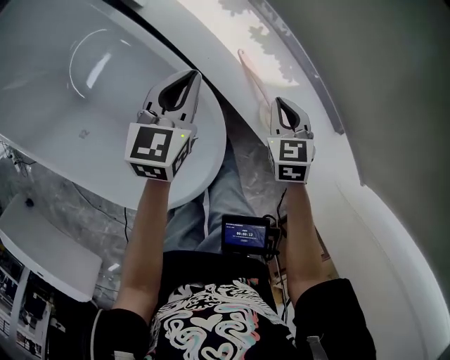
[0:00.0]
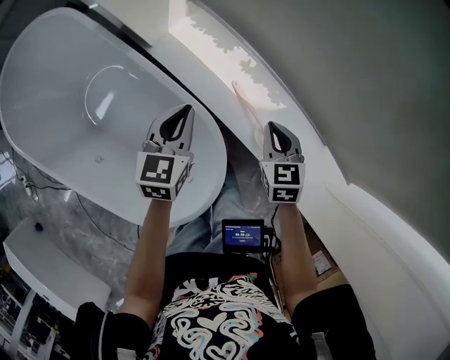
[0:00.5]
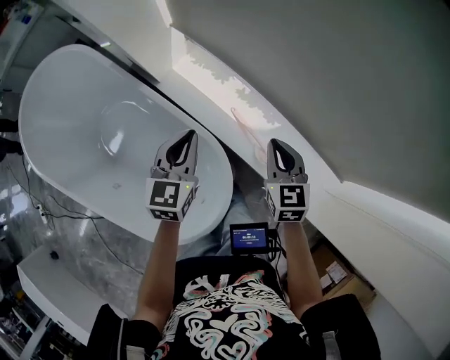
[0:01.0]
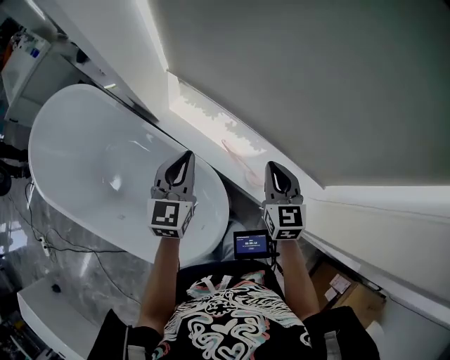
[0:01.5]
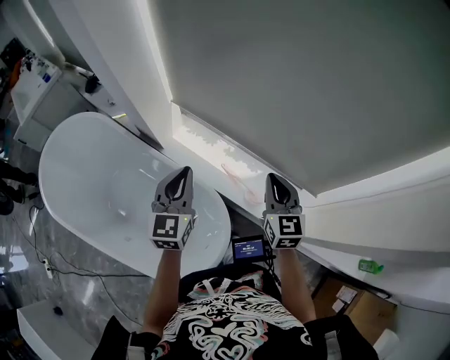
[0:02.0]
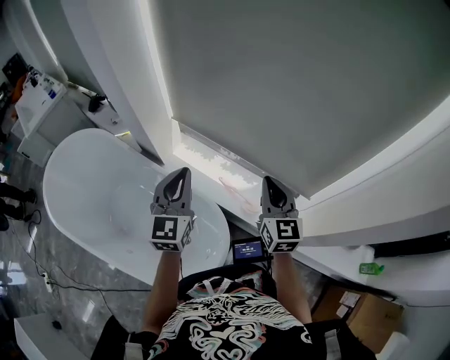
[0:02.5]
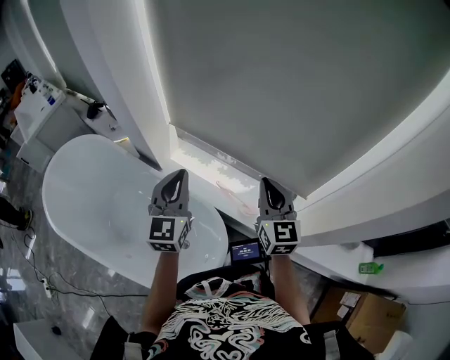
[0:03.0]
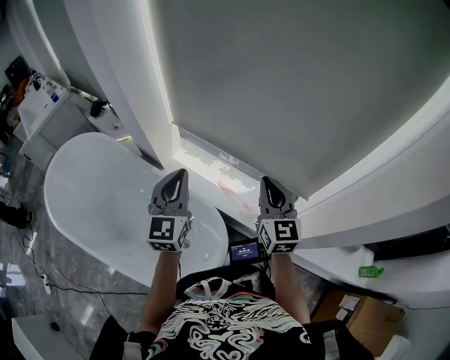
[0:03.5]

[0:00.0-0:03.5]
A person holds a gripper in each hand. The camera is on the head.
0:00.0 to 0:02.0: Both grippers travel together upward, about 35 cm. The left gripper swivels approximately 30 degrees, while the right gripper tilts its fingers about 40 degrees upward.
0:02.0 to 0:03.5: The grippers both shift upward by some 10 cm.

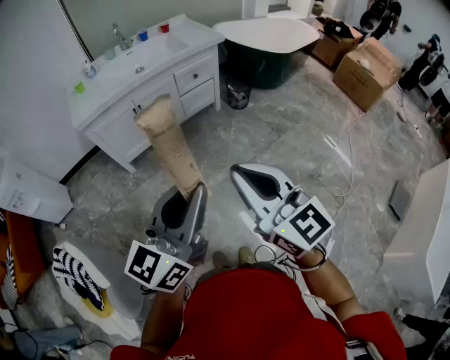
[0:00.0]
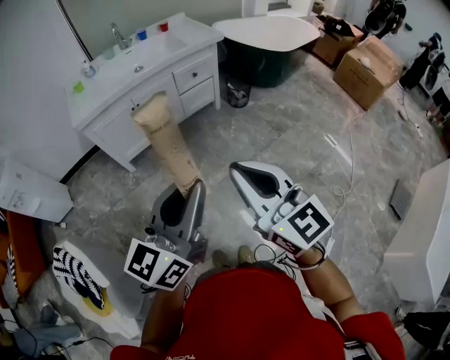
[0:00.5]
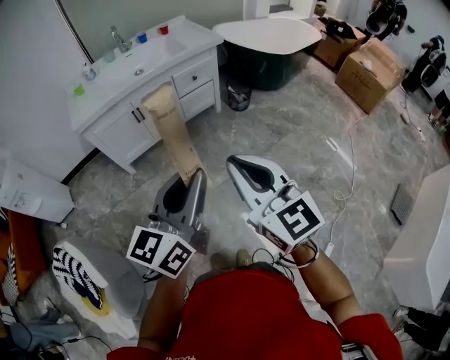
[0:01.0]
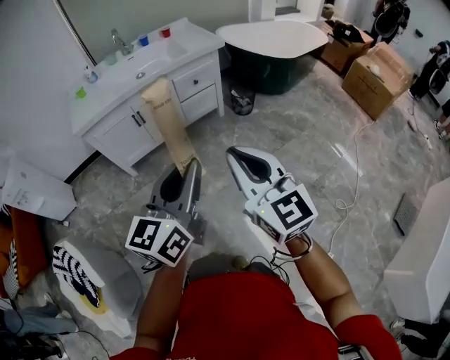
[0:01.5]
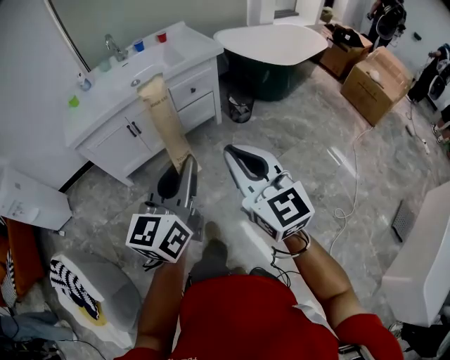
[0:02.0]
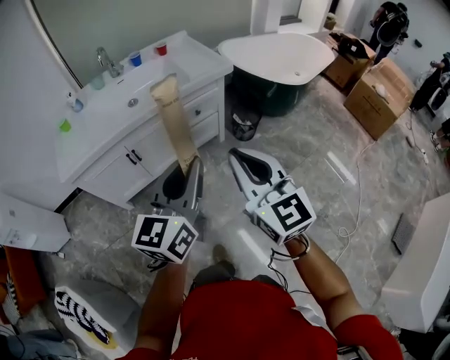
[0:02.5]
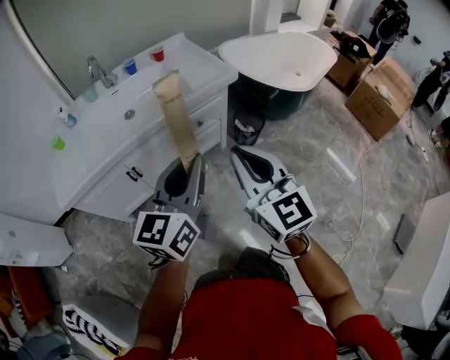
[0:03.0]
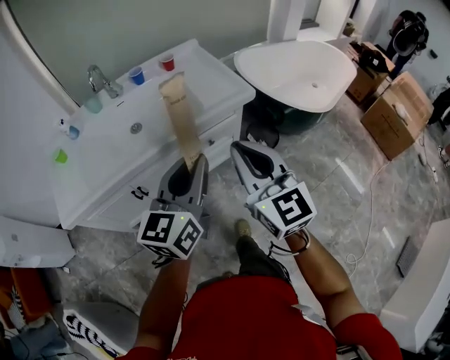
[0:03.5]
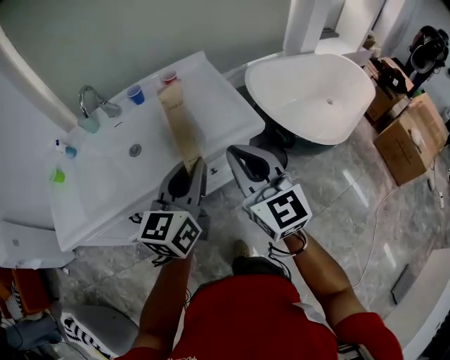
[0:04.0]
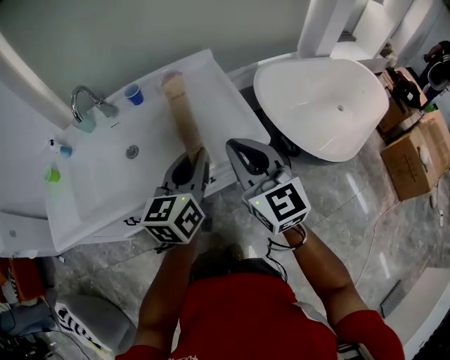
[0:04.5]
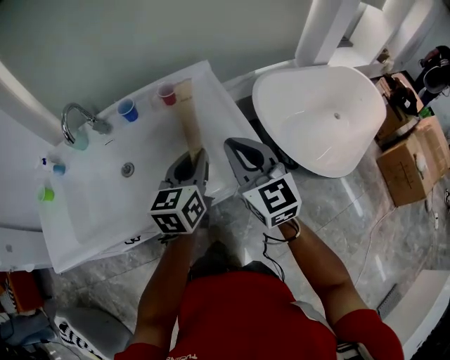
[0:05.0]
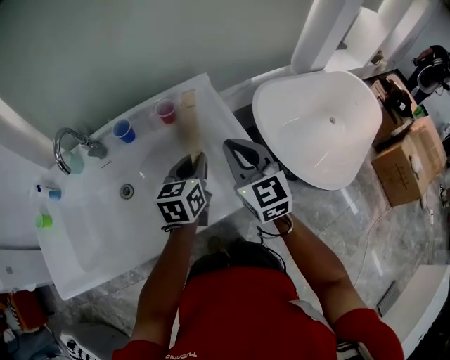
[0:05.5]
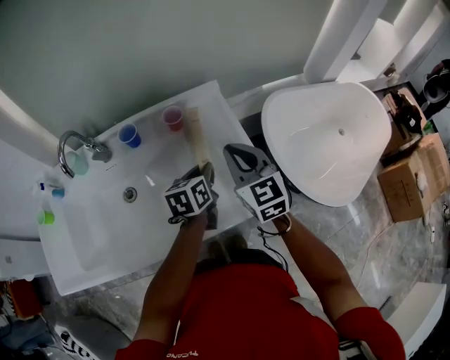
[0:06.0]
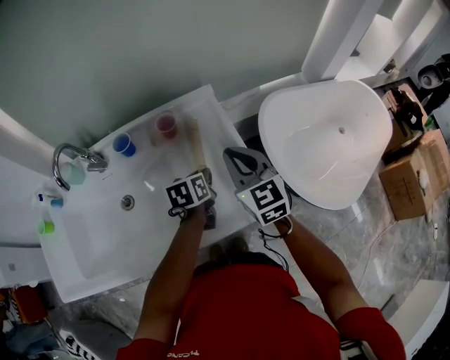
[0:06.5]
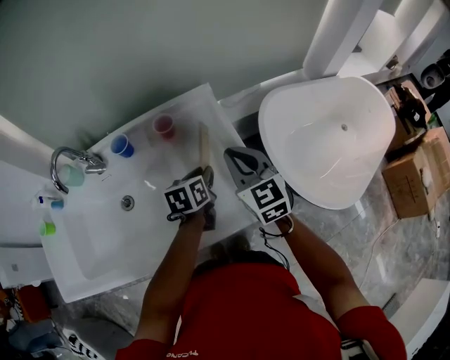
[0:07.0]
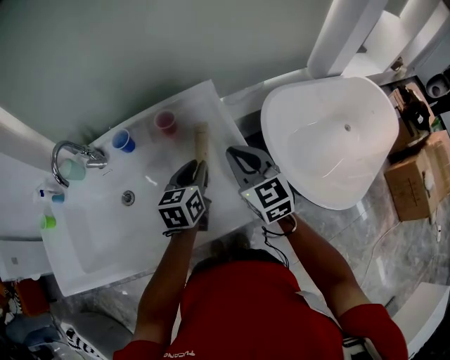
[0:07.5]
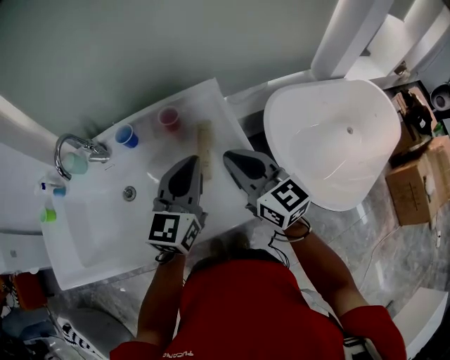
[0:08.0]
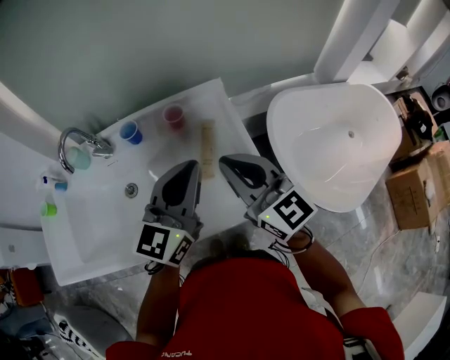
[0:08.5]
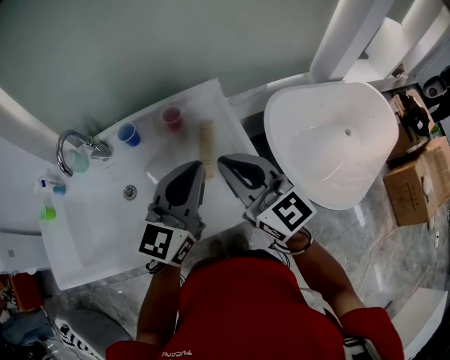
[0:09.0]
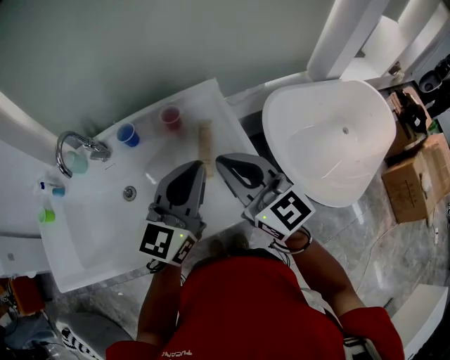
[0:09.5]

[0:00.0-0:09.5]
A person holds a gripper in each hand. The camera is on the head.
0:00.0 to 0:02.0: The right gripper travels forward and to the right by roughly 20 cm. Meanwhile the left gripper shifts some 20 cm forward.
0:02.0 to 0:04.0: The pair of grippers is taken forward, about 60 cm.
0:04.0 to 0:05.5: The right gripper heads forward, covering roughly 30 cm. Meanwhile the left gripper heads forward and downward, covering roughly 30 cm.
0:05.5 to 0:07.5: The right gripper shifts about 5 cm forward. The left gripper travels downward and back again, some 10 cm each way.
0:07.5 to 0:09.5: The right gripper is displaced upward, backward and to the left by some 15 cm, and swivels roughly 20 degrees, while the left gripper goes some 20 cm upward and backward, and changes its angle by some 40 degrees.

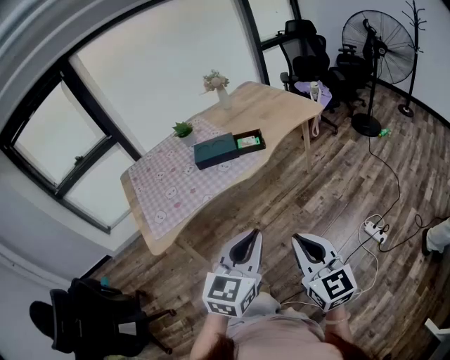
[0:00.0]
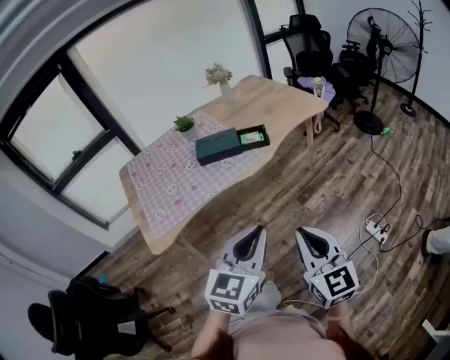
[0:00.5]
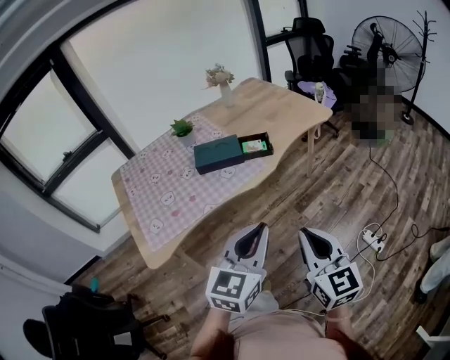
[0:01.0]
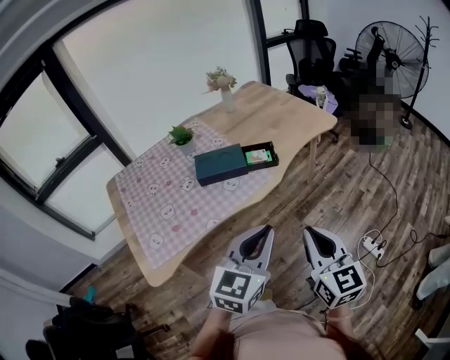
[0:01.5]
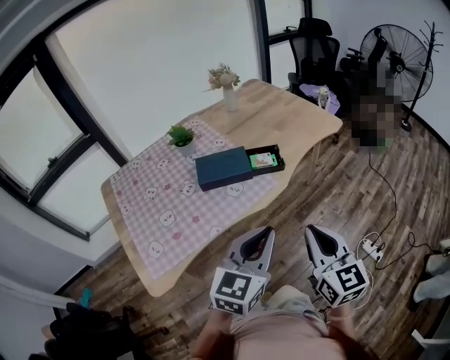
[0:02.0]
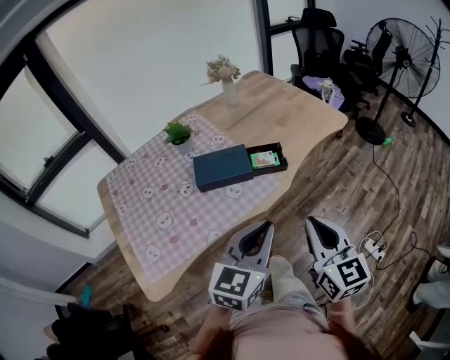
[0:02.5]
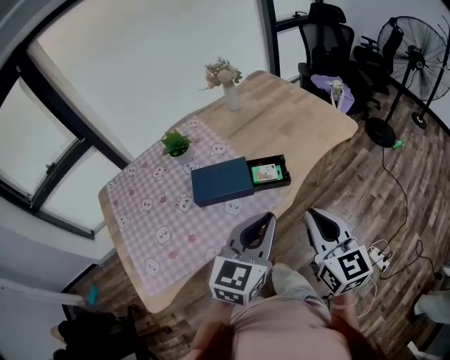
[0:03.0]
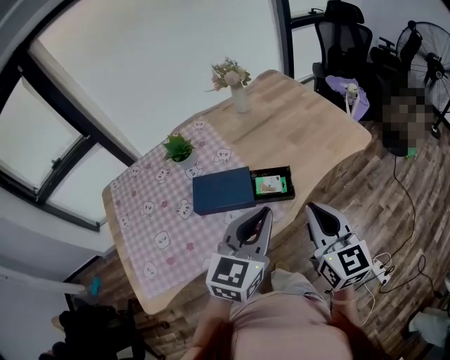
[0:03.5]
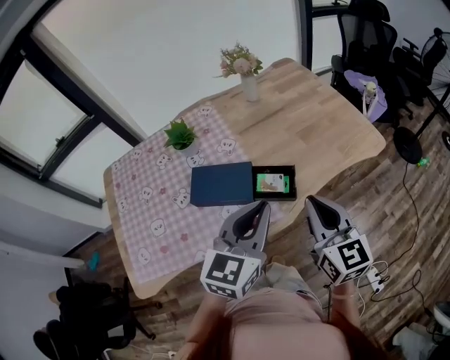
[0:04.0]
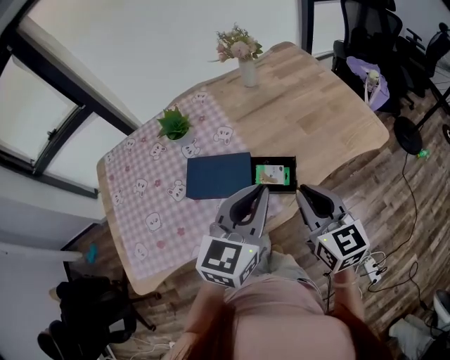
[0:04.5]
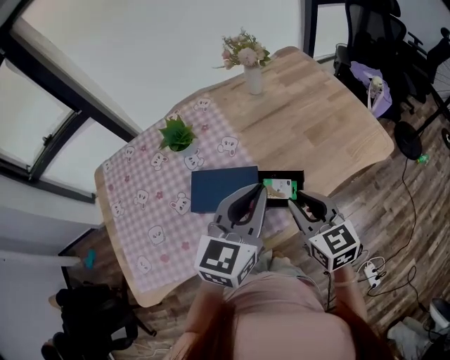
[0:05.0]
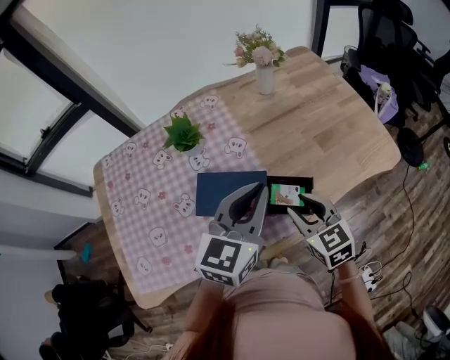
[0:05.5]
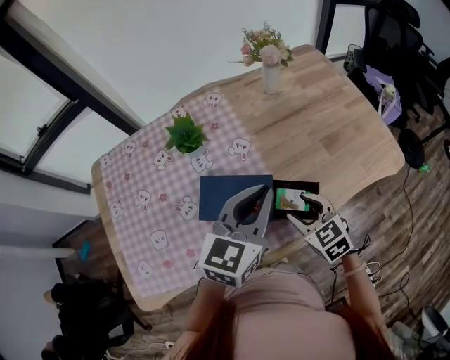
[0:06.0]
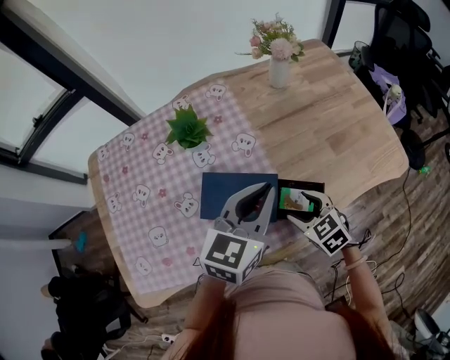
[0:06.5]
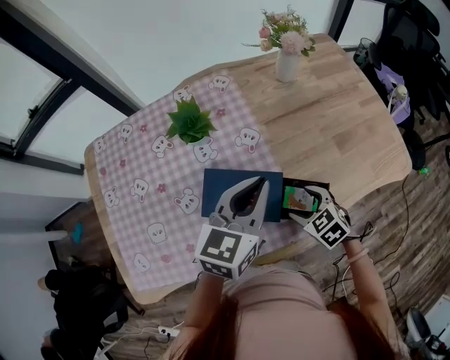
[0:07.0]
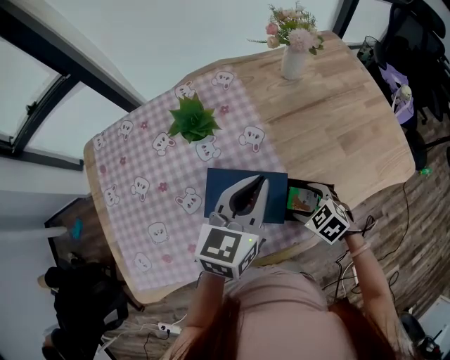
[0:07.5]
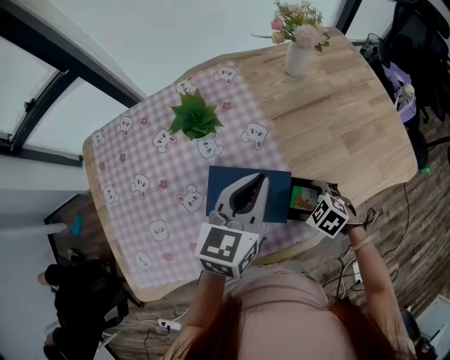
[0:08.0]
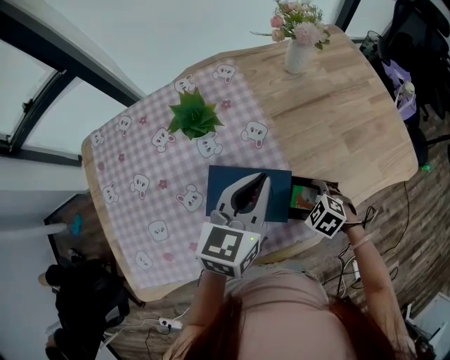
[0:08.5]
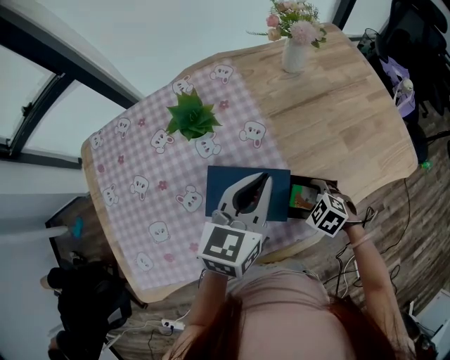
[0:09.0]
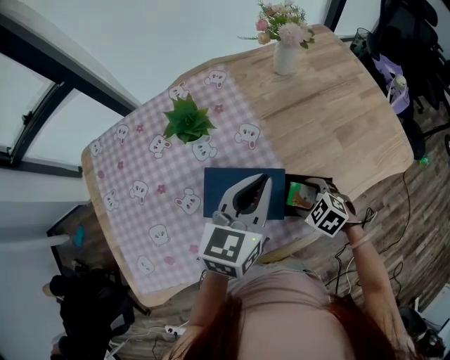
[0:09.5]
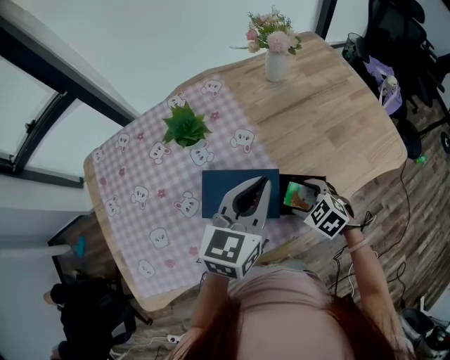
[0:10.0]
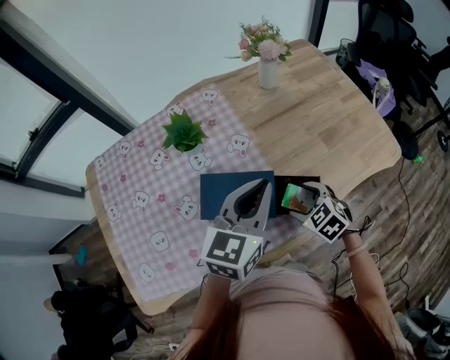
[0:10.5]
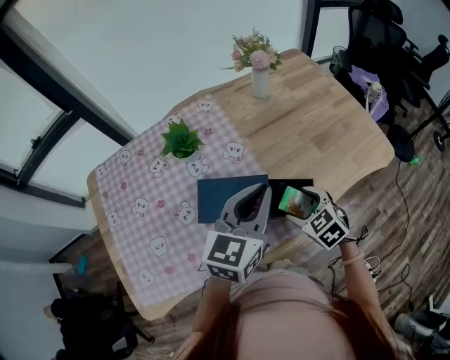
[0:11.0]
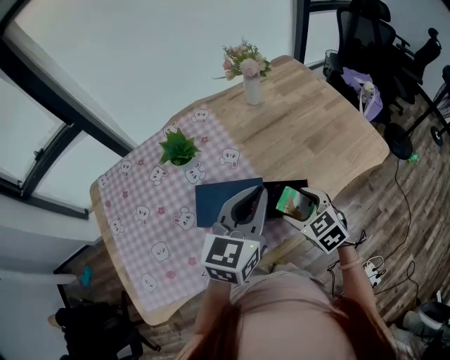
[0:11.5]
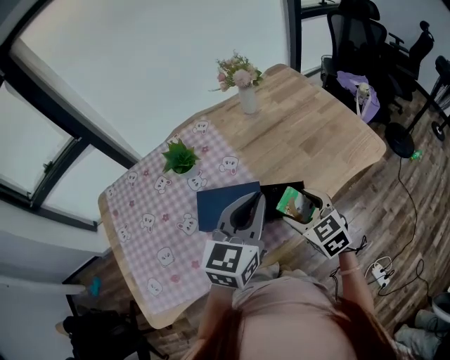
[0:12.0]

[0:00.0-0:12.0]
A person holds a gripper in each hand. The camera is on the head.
0:00.0 to 0:02.0: The right gripper goes approximately 25 cm forward; the left gripper is displaced forward and to the left by roughly 25 cm.
0:02.0 to 0:04.0: Both grippers move forward, approximately 30 cm.
0:04.0 to 0:06.0: The right gripper is displaced downward, forward and to the left by roughly 25 cm, points its fingers roughly 30 degrees further downward, and opens its fingers. The left gripper travels forward and to the left by roughly 15 cm.
0:06.0 to 0:08.0: The left gripper moves forward, downward and to the left, roughly 10 cm; the right gripper moves downward, some 15 cm, rotates roughly 30 degrees, and opens its fingers.
0:08.0 to 0:10.0: The left gripper ends up approximately 5 cm from where it was.
0:10.0 to 0:12.0: The left gripper travels backward and upward by roughly 10 cm. The right gripper goes about 15 cm upward, and swivels roughly 30 degrees.

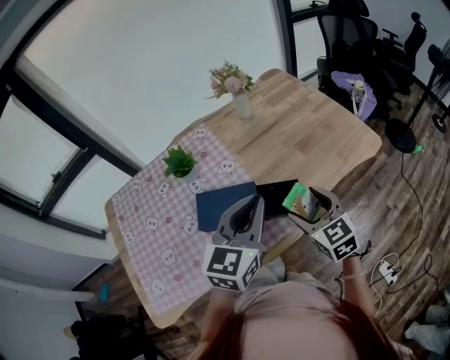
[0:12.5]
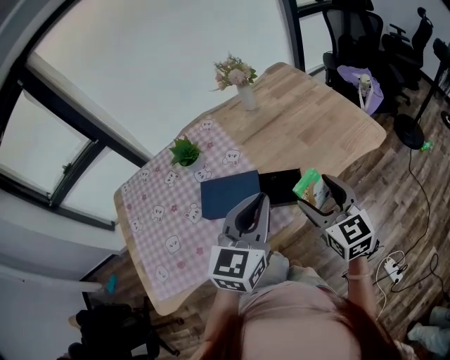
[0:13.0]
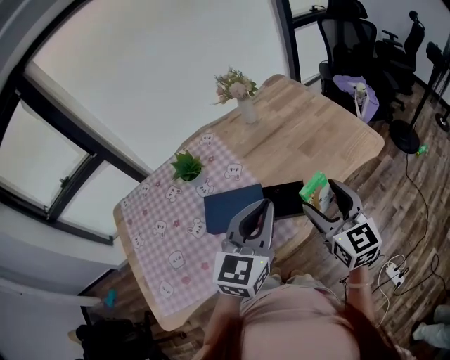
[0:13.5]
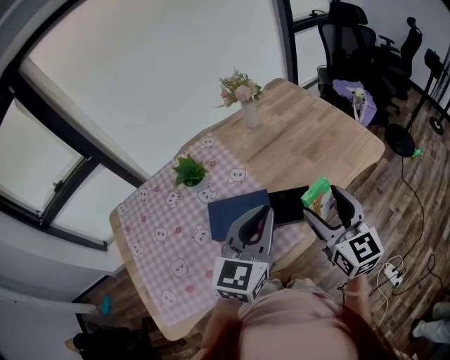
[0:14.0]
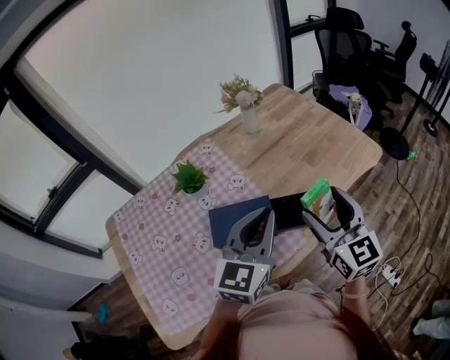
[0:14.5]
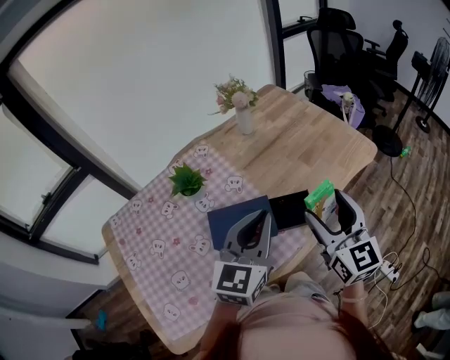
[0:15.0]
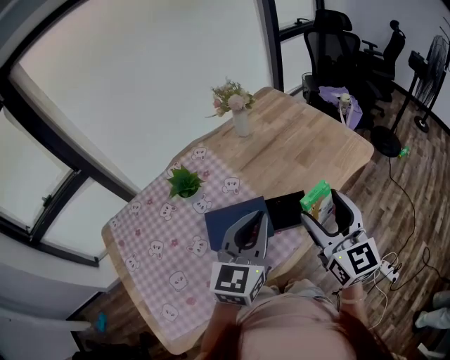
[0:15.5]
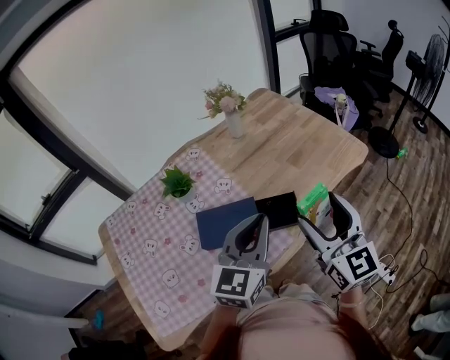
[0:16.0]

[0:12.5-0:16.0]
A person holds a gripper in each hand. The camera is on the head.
0:12.5 to 0:14.5: The right gripper moves upward, approximately 10 cm, and turns by approximately 20 degrees; the left gripper moves some 5 cm.
0:14.5 to 0:16.0: The right gripper moves some 5 cm.
